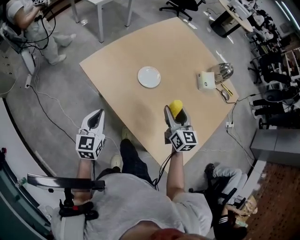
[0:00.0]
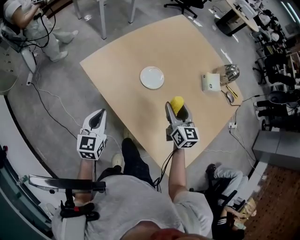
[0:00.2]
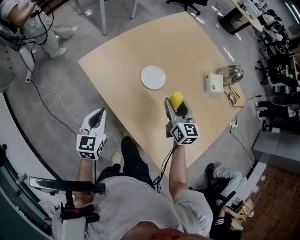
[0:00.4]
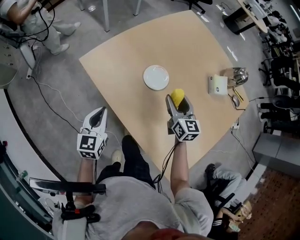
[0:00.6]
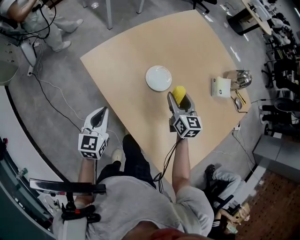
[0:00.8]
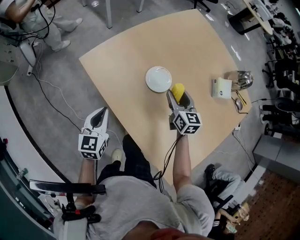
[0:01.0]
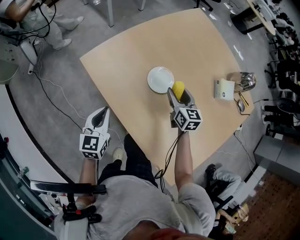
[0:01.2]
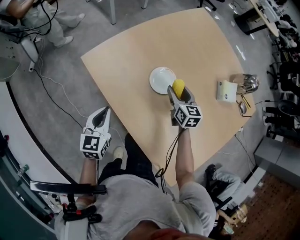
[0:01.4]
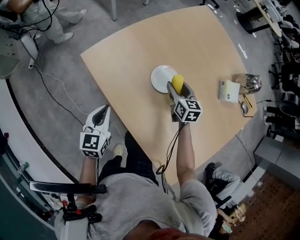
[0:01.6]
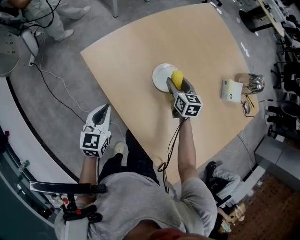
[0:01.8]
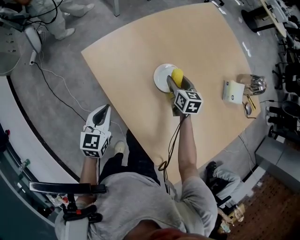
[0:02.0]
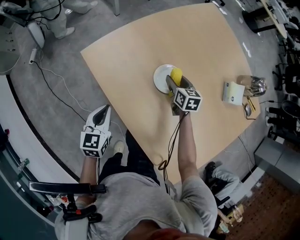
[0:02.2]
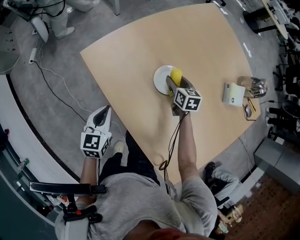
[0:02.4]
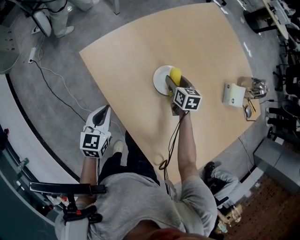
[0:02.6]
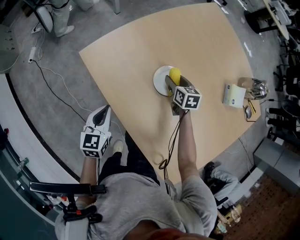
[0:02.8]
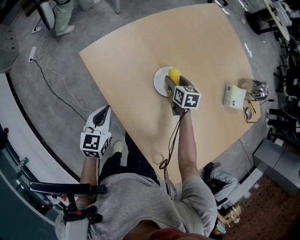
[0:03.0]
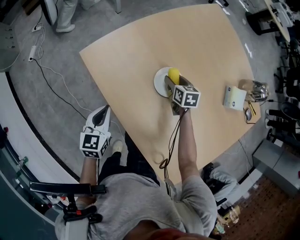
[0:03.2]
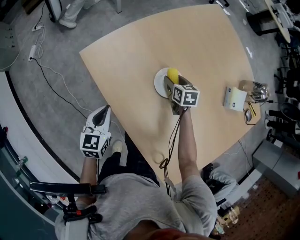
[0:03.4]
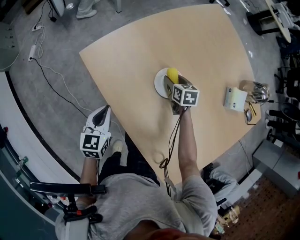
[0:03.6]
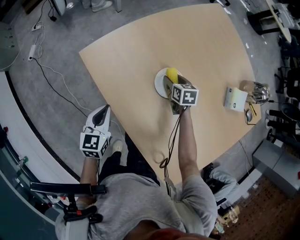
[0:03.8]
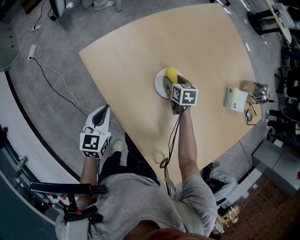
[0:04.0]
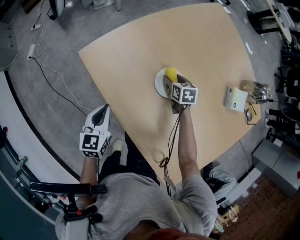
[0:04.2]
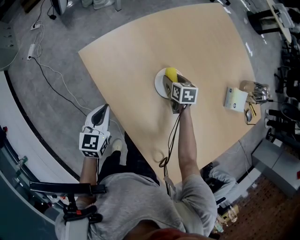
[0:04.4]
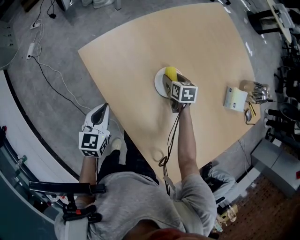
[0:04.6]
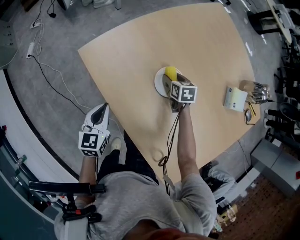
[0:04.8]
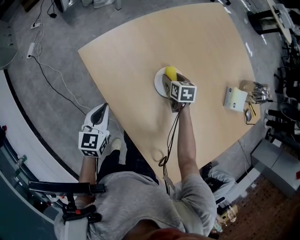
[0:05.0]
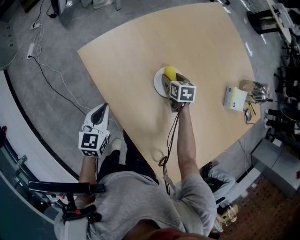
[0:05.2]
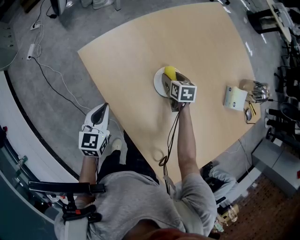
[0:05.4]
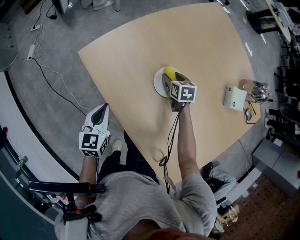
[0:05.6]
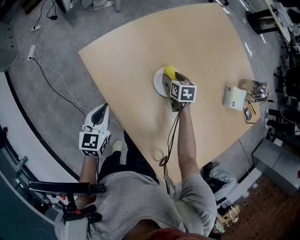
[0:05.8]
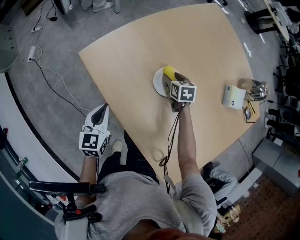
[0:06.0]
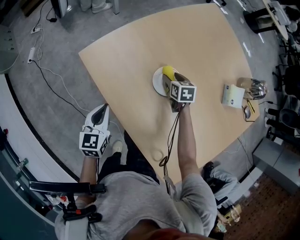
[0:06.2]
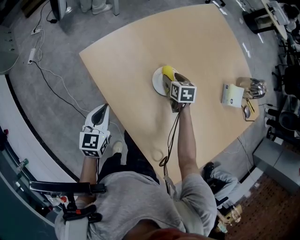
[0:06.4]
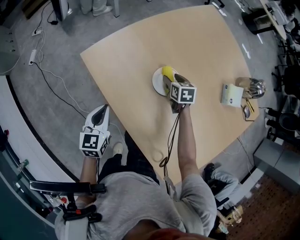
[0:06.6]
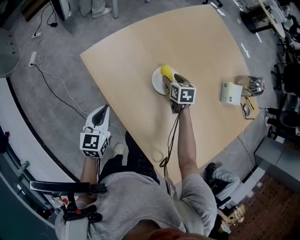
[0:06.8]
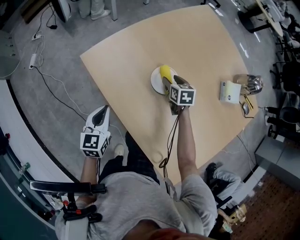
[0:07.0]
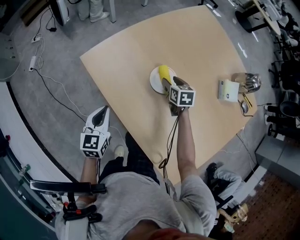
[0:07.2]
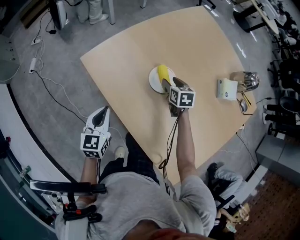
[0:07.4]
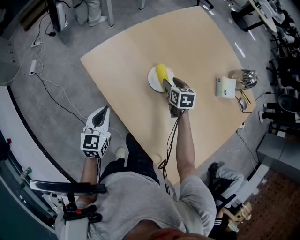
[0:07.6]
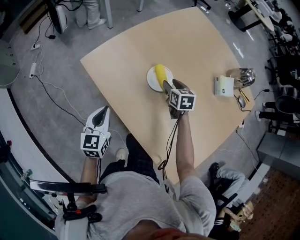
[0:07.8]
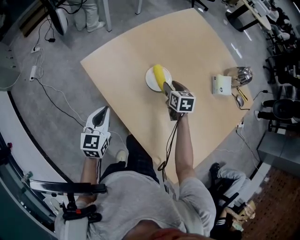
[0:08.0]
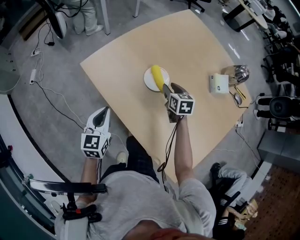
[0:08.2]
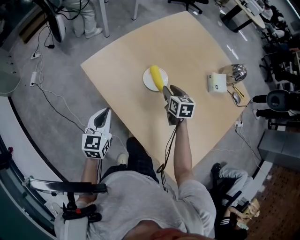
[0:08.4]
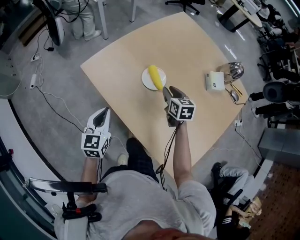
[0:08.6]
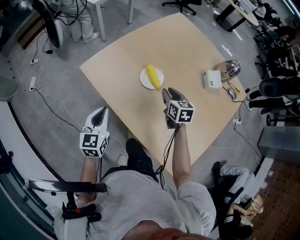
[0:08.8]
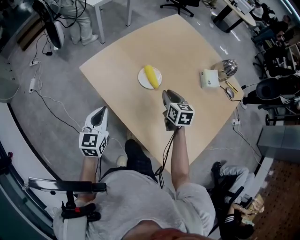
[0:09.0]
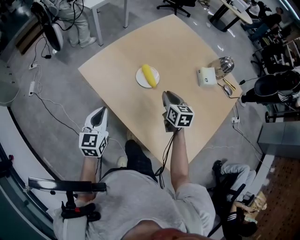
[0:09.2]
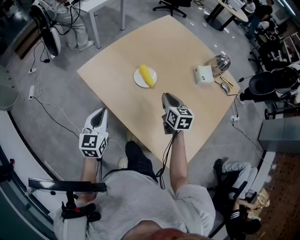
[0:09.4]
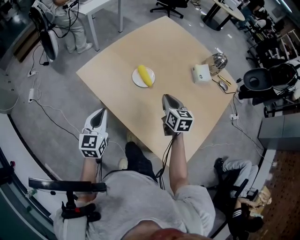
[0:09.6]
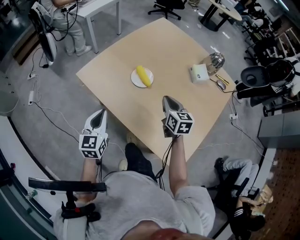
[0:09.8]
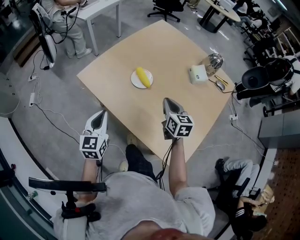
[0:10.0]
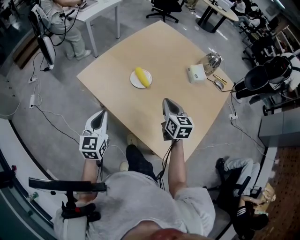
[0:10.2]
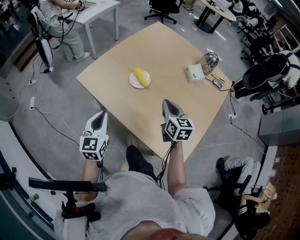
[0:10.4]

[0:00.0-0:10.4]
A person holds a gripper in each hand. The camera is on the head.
0:00.0 to 0:01.4: The left gripper goes some 10 cm forward and downward, while the right gripper heads forward and downward, covering some 25 cm.
0:01.4 to 0:03.0: The right gripper moves downward and forward, roughly 10 cm.
0:03.0 to 0:04.4: The grippers stay close to where they were, moving slightly.
0:04.4 to 0:06.0: Both grippers stay about where they are.
0:06.0 to 0:07.4: The right gripper goes some 5 cm upward.
0:07.4 to 0:09.0: The right gripper goes approximately 15 cm backward and upward, and closes. The left gripper moves upward and backward, roughly 10 cm.
0:09.0 to 0:10.4: The left gripper goes some 10 cm backward and upward; the right gripper shifts about 15 cm backward and upward.

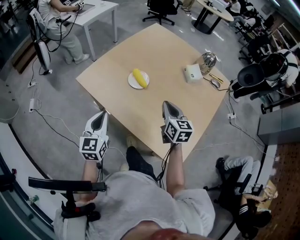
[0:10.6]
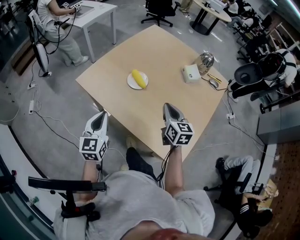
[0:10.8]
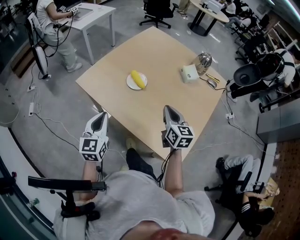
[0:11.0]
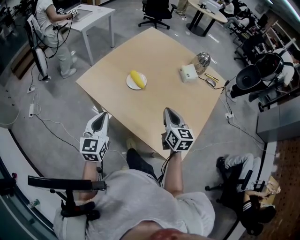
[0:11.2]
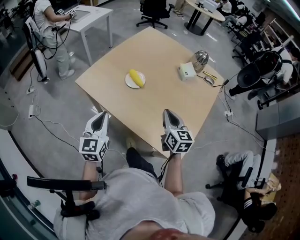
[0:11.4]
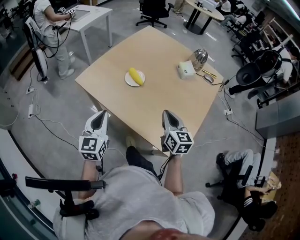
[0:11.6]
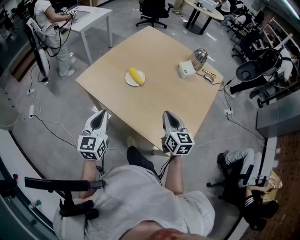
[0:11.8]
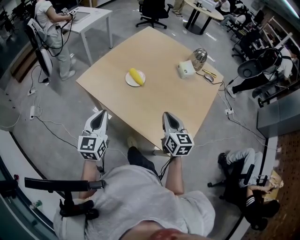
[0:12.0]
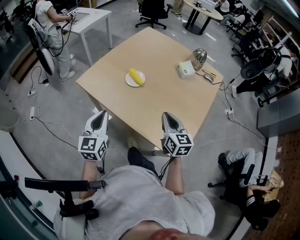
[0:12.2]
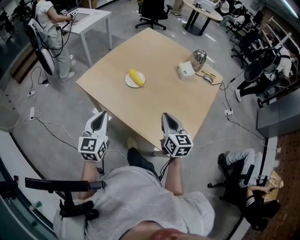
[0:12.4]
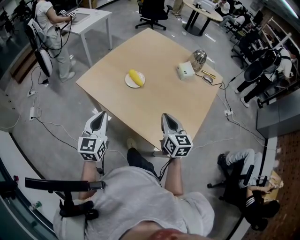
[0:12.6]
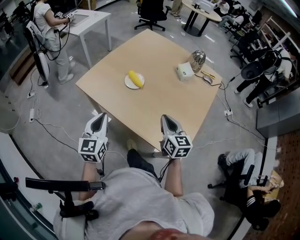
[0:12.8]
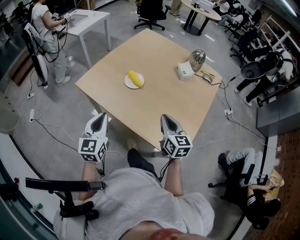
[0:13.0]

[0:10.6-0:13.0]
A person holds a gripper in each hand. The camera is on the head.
0:10.6 to 0:11.8: The right gripper shifts about 5 cm backward.
0:11.8 to 0:13.0: There are only small adjustments of the grippers.

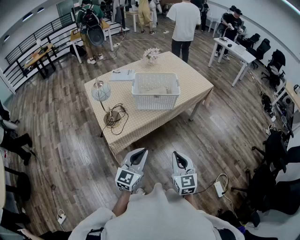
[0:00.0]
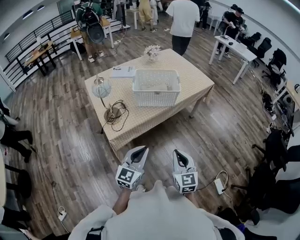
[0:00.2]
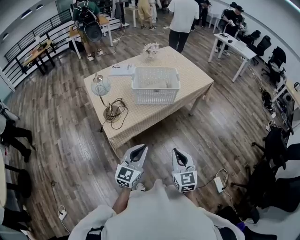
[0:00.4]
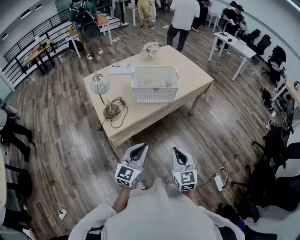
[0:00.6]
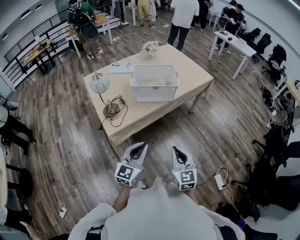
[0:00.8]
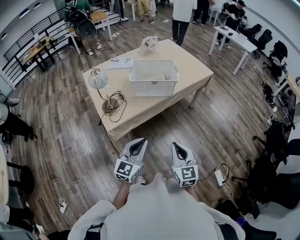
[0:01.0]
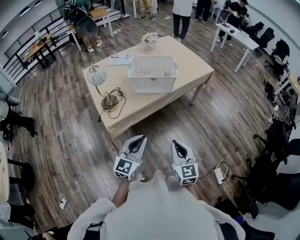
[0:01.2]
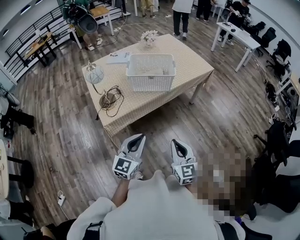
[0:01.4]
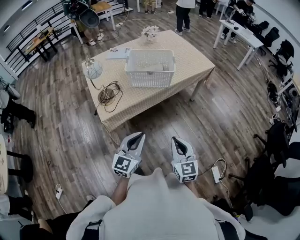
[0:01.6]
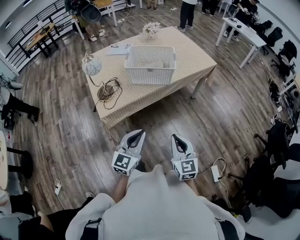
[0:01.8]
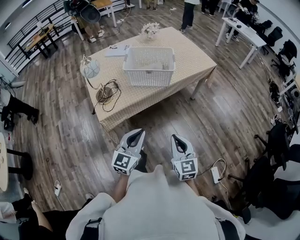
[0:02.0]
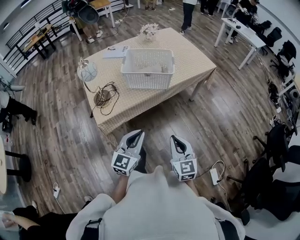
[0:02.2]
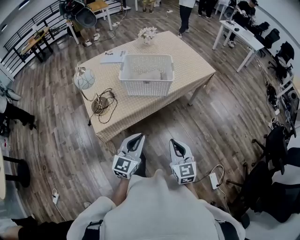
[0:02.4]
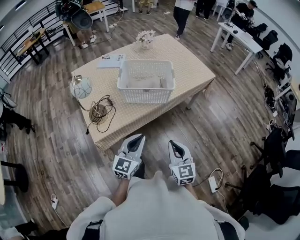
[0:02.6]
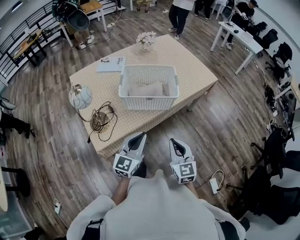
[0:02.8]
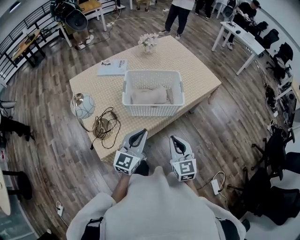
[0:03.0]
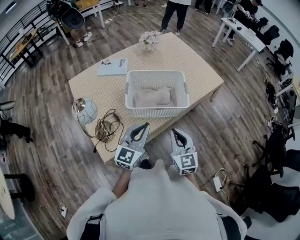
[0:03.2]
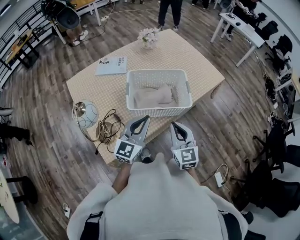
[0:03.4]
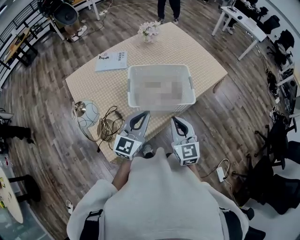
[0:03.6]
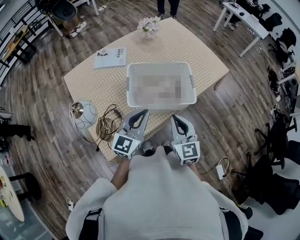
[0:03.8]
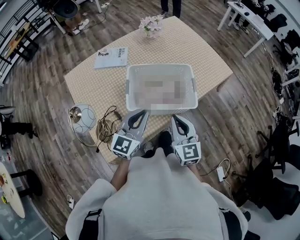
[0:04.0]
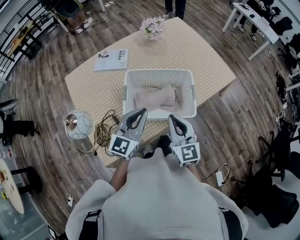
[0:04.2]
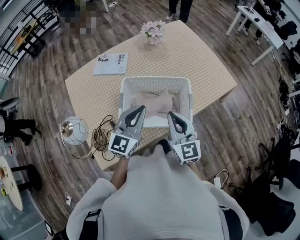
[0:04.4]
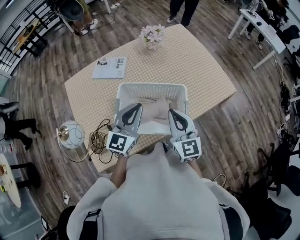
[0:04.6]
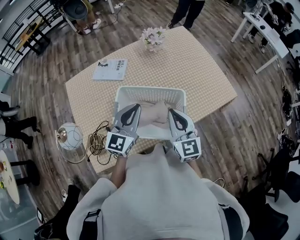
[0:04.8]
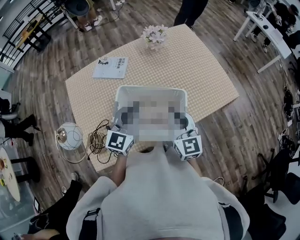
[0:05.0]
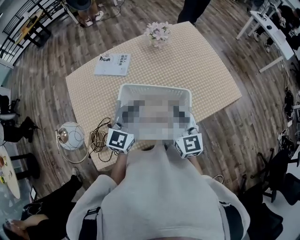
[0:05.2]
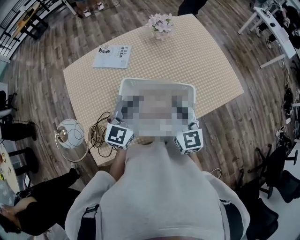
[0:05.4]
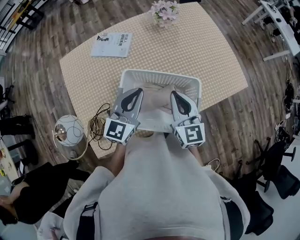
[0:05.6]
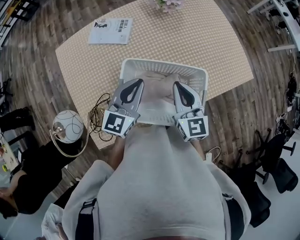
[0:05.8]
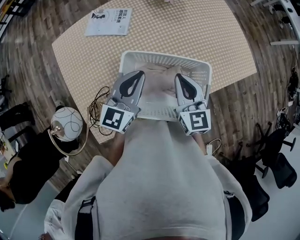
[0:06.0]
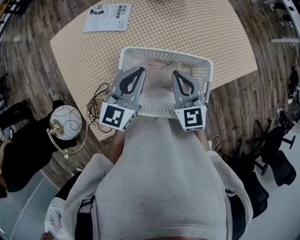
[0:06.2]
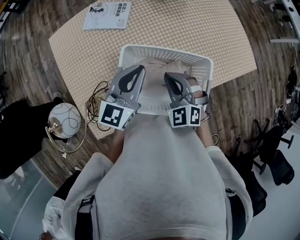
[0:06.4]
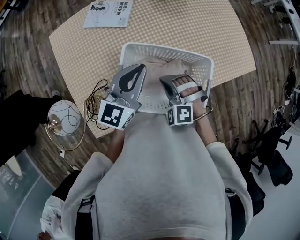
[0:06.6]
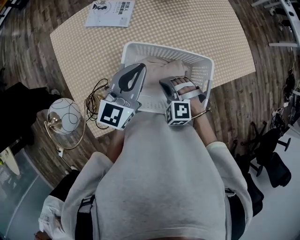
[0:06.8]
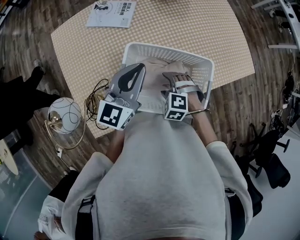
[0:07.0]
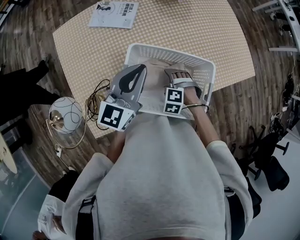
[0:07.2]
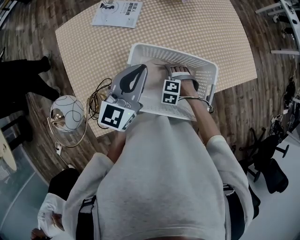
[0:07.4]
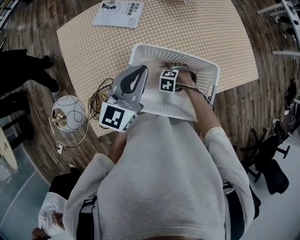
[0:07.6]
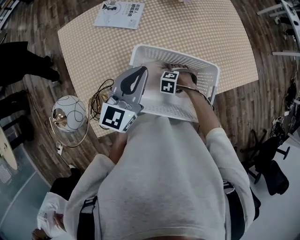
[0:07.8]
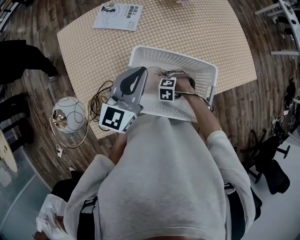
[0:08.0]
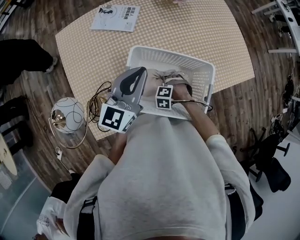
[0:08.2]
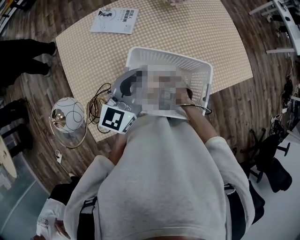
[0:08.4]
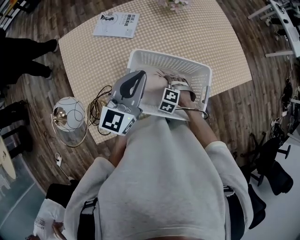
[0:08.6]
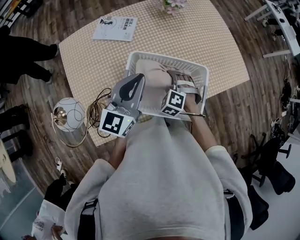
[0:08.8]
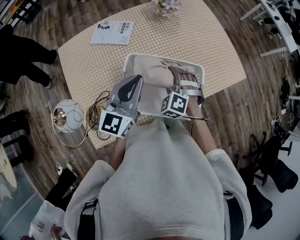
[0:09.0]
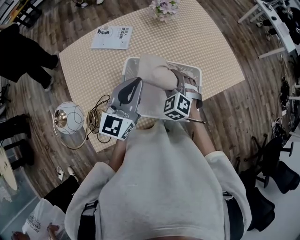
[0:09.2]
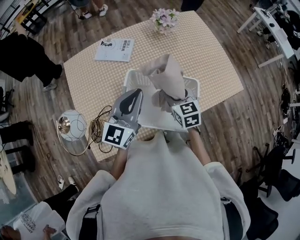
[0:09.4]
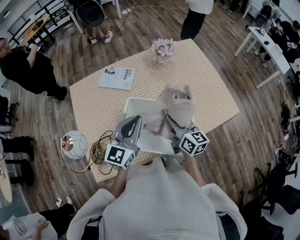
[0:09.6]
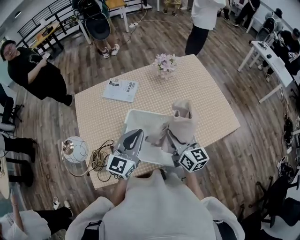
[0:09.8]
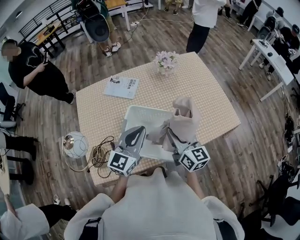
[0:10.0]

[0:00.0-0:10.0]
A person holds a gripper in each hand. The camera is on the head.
0:00.0 to 0:01.4: The left gripper moves roughly 5 cm; the right gripper changes place by roughly 5 cm.
0:01.4 to 0:02.8: Both grippers move forward, approximately 20 cm.
0:02.8 to 0:04.2: The right gripper heads forward and to the left, covering some 25 cm. The left gripper heads forward, covering some 25 cm.
0:04.2 to 0:05.8: The two grippers go roughly 15 cm forward.
0:05.8 to 0:07.2: The right gripper shifts about 20 cm downward, tips its fingers downward by some 60 degrees, and opens its fingers.
0:07.2 to 0:08.6: The right gripper travels downward and back again, some 10 cm each way, and closes up.
0:08.6 to 0:10.0: The left gripper goes roughly 5 cm to the right. The right gripper moves upward, some 30 cm, and tips its fingers upward by about 60 degrees.

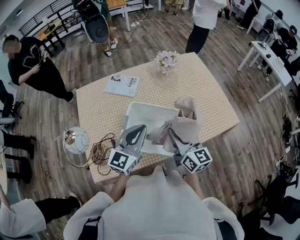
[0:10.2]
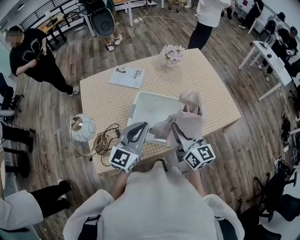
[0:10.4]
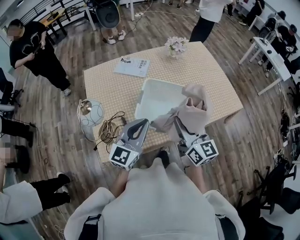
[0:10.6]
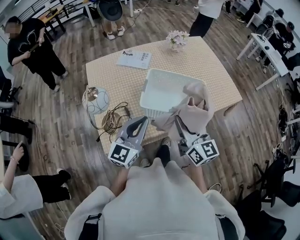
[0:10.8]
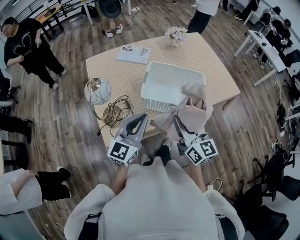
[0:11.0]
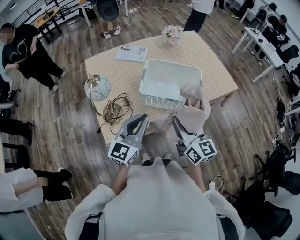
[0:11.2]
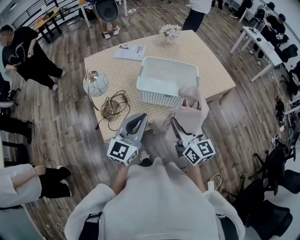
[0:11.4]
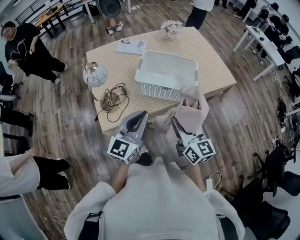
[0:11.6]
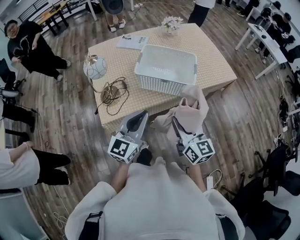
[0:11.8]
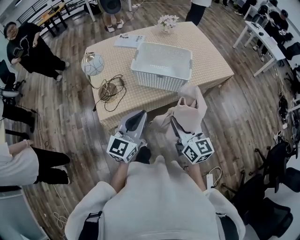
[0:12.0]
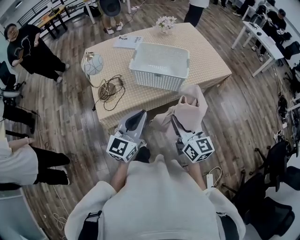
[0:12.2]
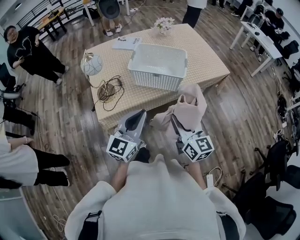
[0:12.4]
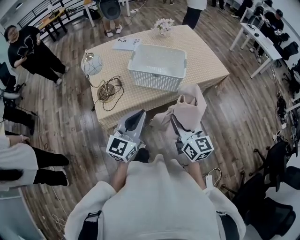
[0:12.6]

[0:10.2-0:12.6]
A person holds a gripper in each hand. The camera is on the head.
0:10.2 to 0:11.4: The grippers both shift backward by approximately 25 cm.
0:11.4 to 0:12.6: Both grippers move backward and to the right, roughly 15 cm.
